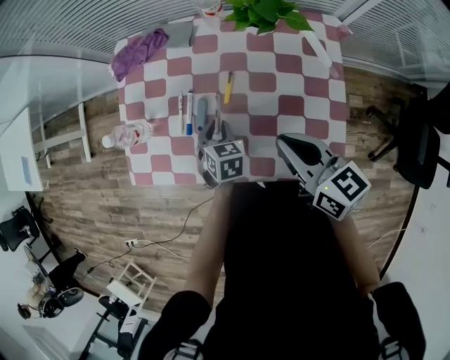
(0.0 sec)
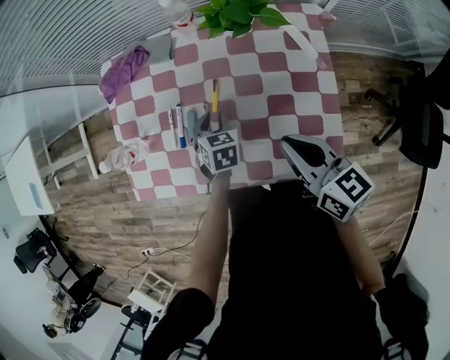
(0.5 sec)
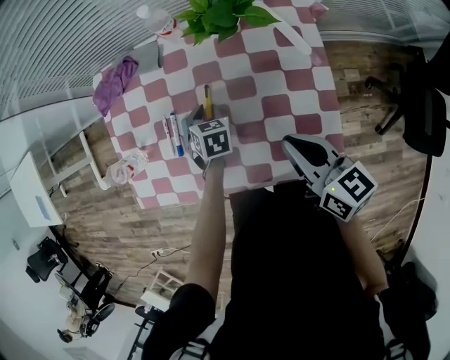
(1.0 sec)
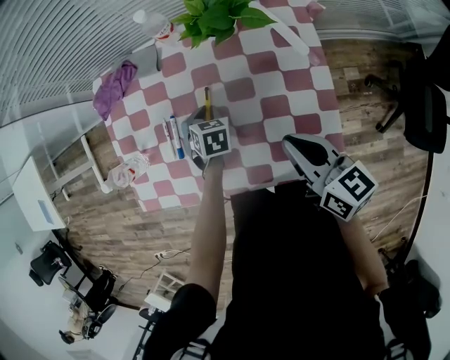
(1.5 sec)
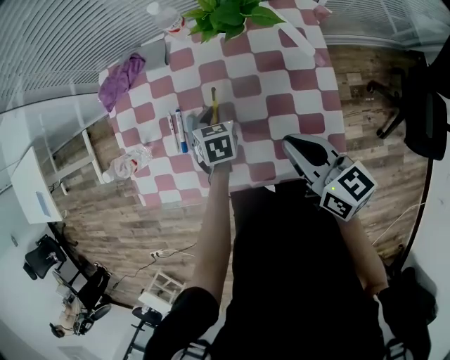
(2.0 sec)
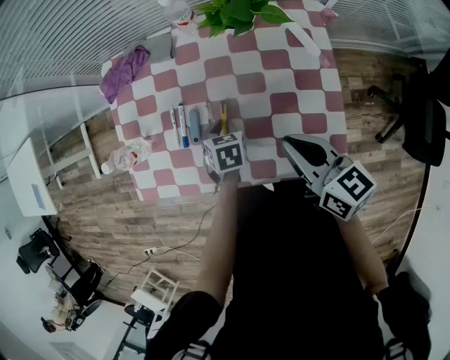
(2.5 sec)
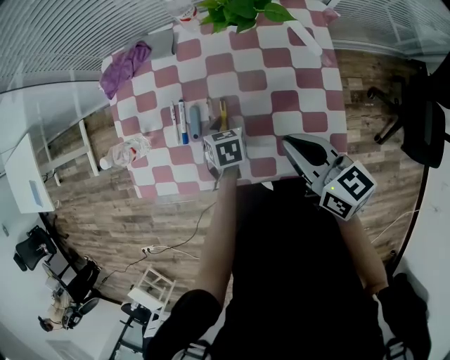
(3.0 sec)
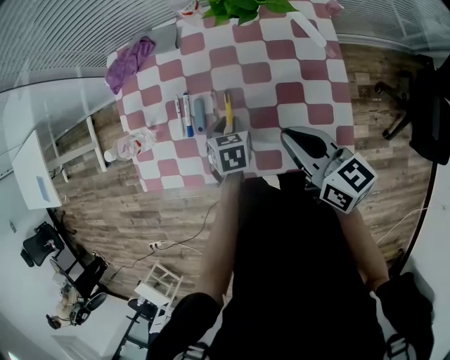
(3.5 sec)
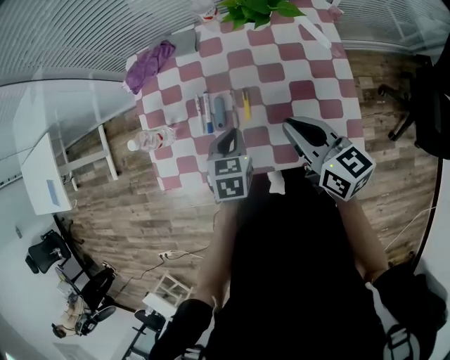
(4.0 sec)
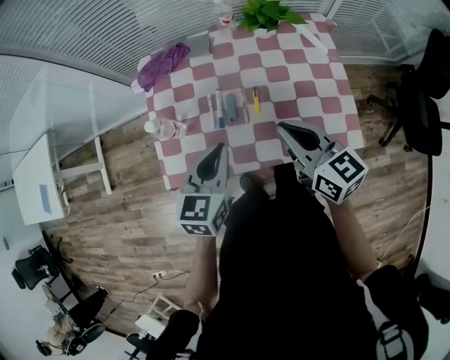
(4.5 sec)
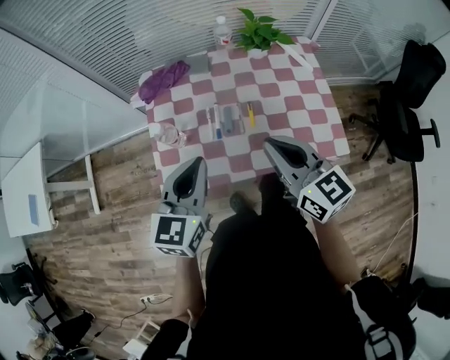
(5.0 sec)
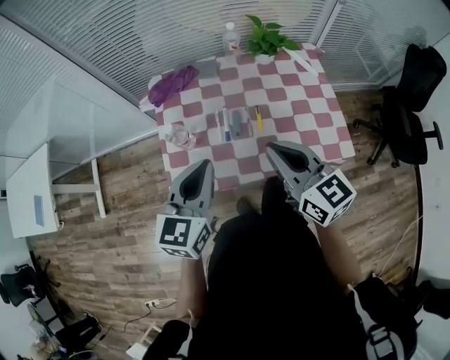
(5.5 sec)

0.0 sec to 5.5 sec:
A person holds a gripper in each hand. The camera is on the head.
0.0 sec to 2.0 sec: The right gripper heads to the right, covering approximately 5 cm; the left gripper is displaced to the right and forward by roughly 10 cm.
2.0 sec to 3.5 sec: The left gripper heads backward, covering approximately 5 cm.
3.5 sec to 5.5 sec: The right gripper moves to the left, upward and backward, approximately 25 cm, and changes its angle by some 30 degrees; the left gripper moves upward and to the left, roughly 40 cm, and tips its fingers upward by about 50 degrees.

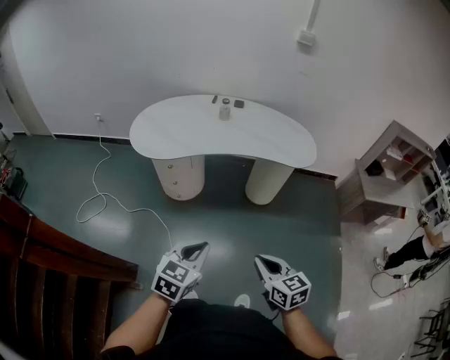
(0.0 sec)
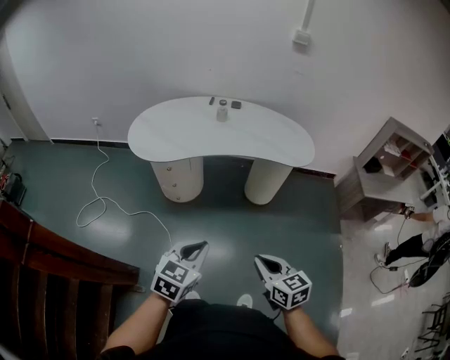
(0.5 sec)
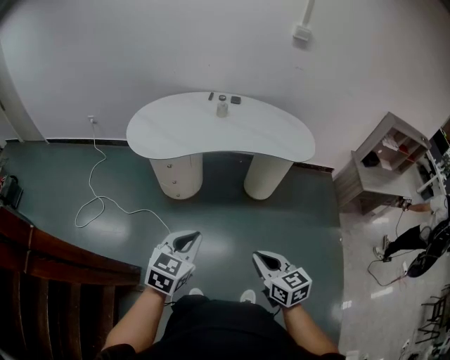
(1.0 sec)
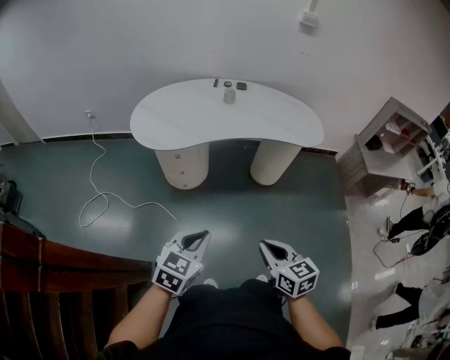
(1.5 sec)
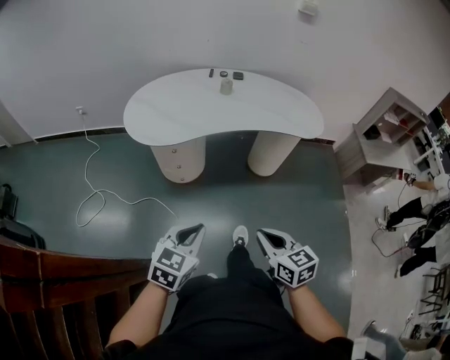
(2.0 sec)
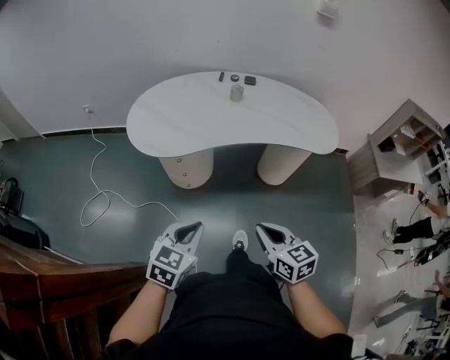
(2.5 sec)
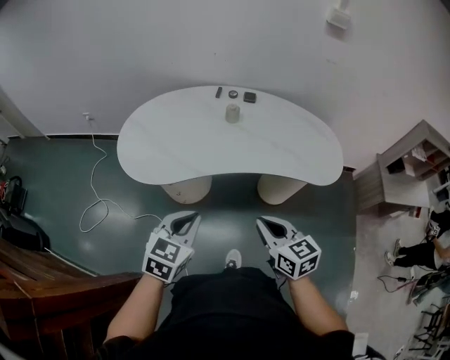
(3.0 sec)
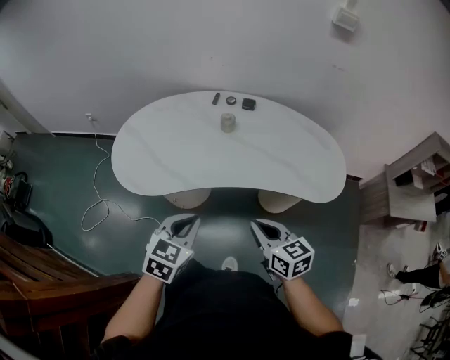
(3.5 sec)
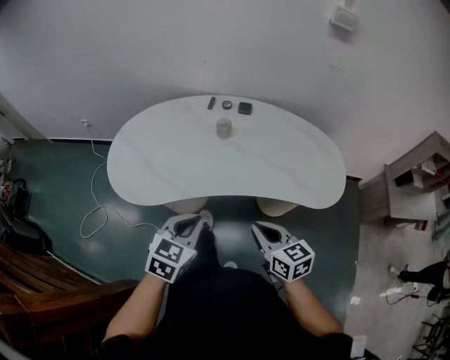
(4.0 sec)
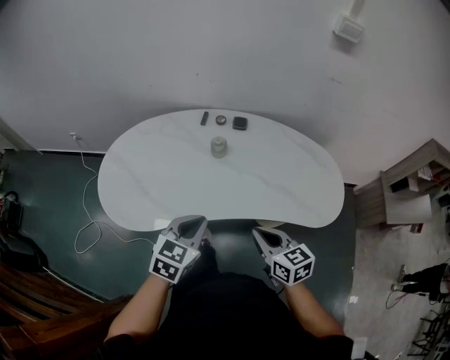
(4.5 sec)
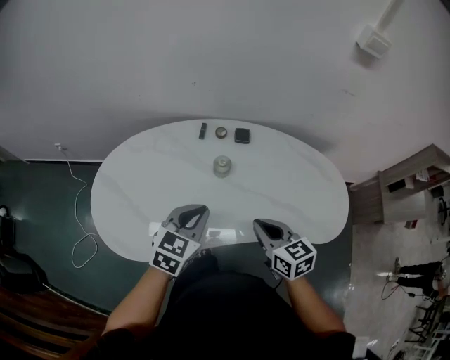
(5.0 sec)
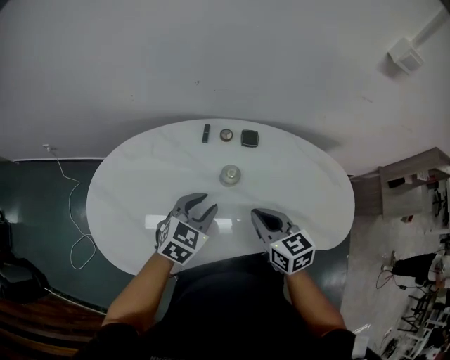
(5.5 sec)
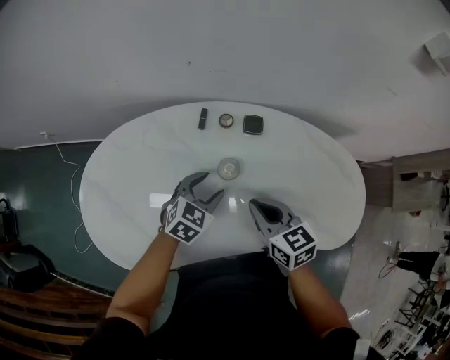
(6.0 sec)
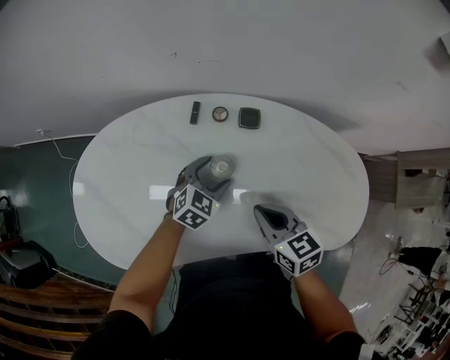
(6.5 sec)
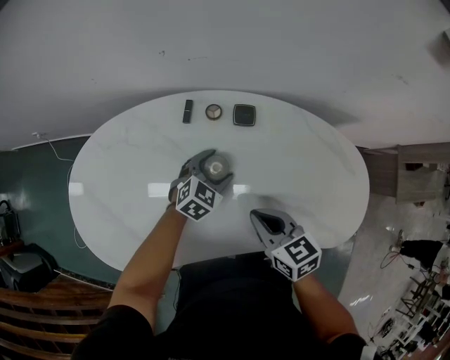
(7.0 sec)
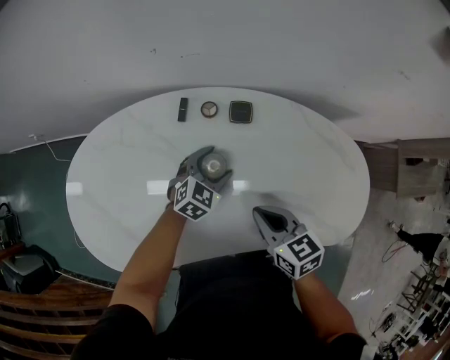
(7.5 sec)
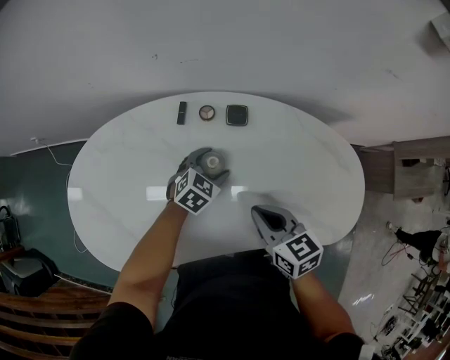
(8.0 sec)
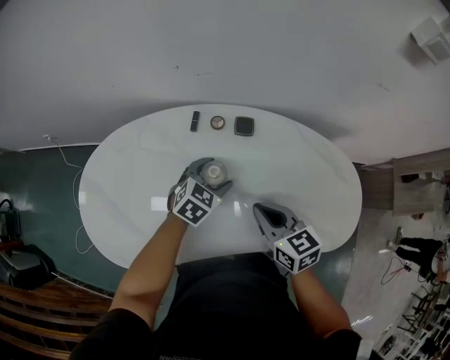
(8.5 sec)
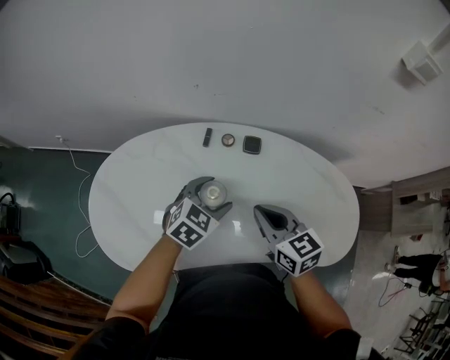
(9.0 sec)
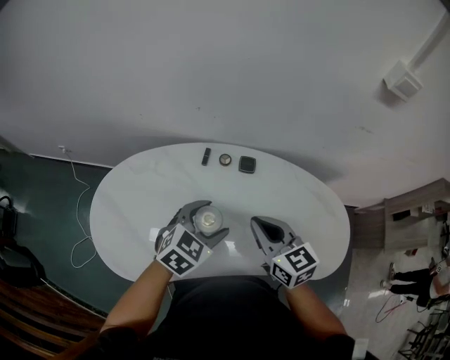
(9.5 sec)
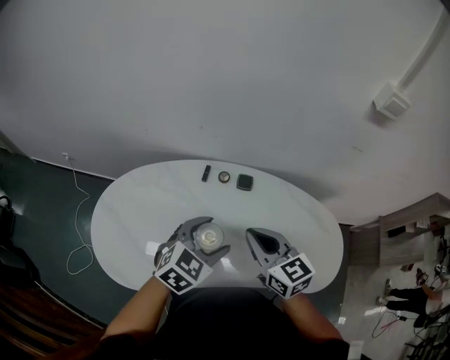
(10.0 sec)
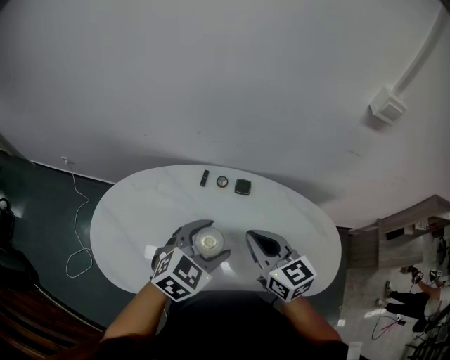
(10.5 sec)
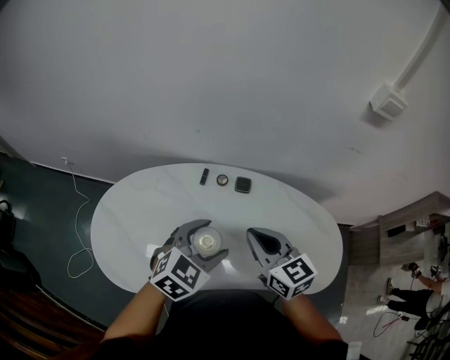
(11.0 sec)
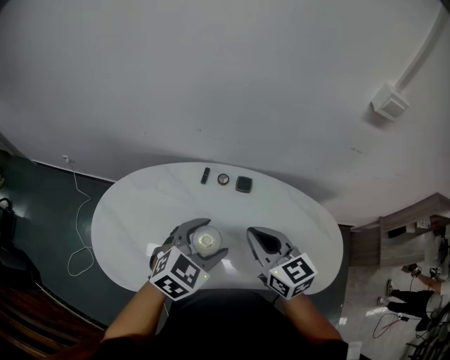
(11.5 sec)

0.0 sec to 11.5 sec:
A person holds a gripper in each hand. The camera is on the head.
0.0 sec to 2.0 sec: The grippers both shift to the left by some 15 cm.
2.0 sec to 4.0 sec: The grippers both shift forward by roughly 35 cm.
4.0 sec to 6.0 sec: The two grippers go some 35 cm forward. The left gripper opens.
6.0 sec to 7.5 sec: The left gripper goes about 10 cm downward, to the right and forward, while the right gripper changes place by roughly 5 cm.
7.5 sec to 9.5 sec: The left gripper goes approximately 25 cm upward and backward, while the right gripper moves upward, roughly 15 cm, and swivels roughly 20 degrees.
9.5 sec to 11.5 sec: The right gripper ends up approximately 5 cm from where it was. The left gripper travels upward by approximately 5 cm.

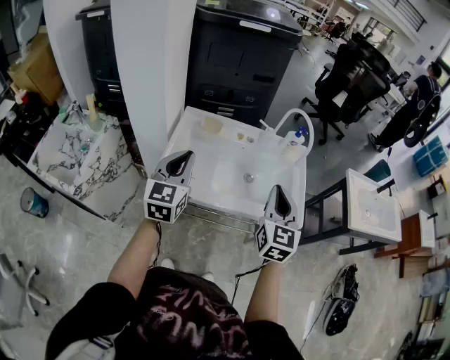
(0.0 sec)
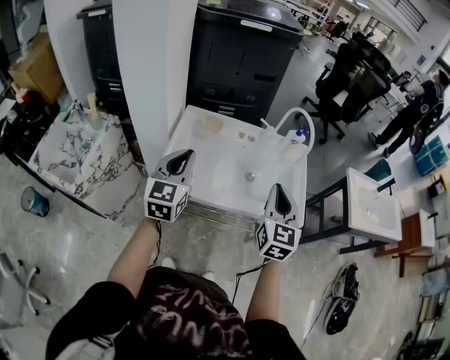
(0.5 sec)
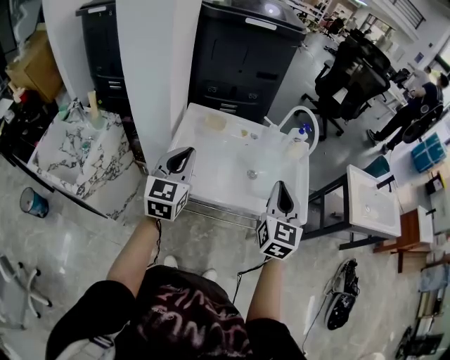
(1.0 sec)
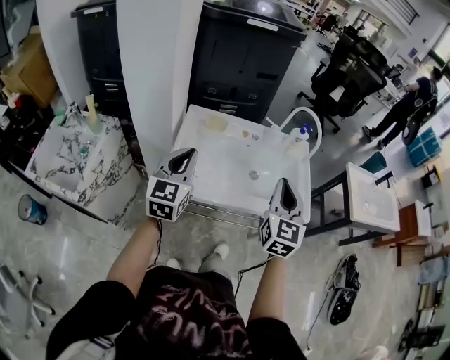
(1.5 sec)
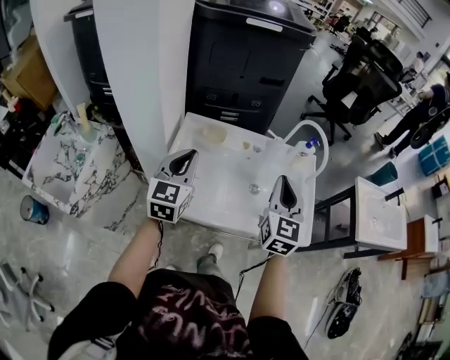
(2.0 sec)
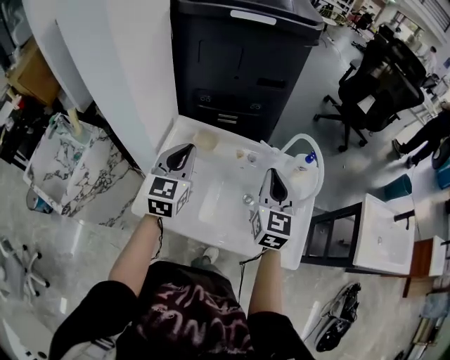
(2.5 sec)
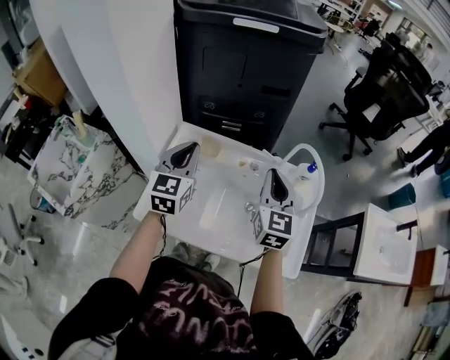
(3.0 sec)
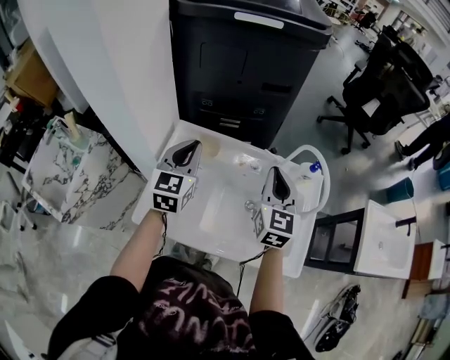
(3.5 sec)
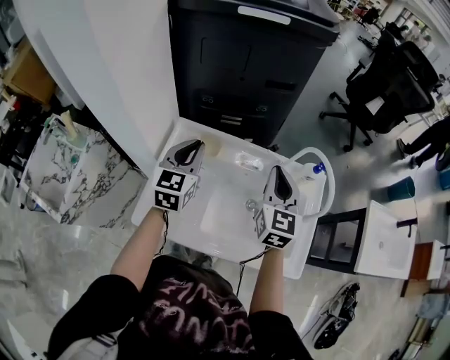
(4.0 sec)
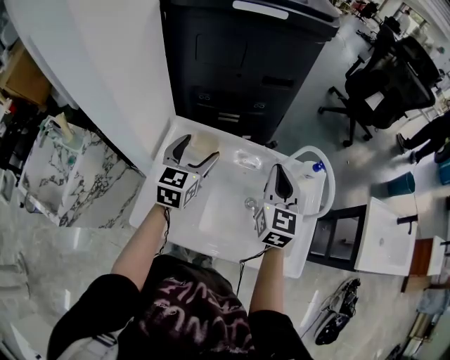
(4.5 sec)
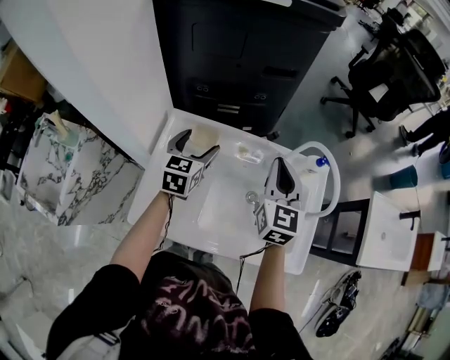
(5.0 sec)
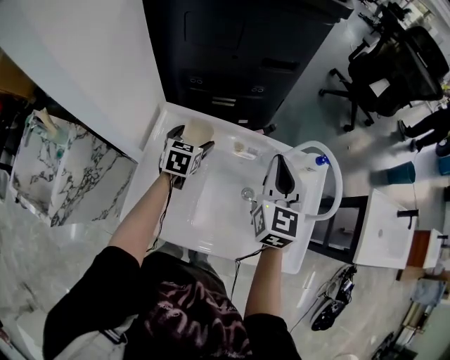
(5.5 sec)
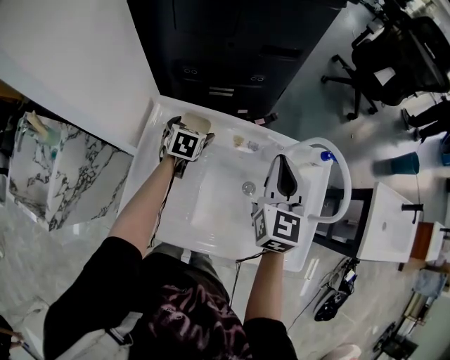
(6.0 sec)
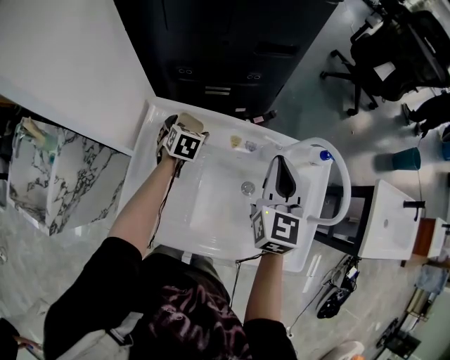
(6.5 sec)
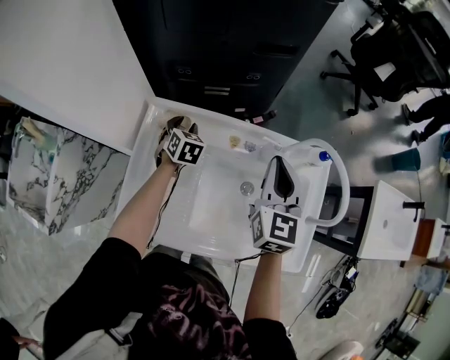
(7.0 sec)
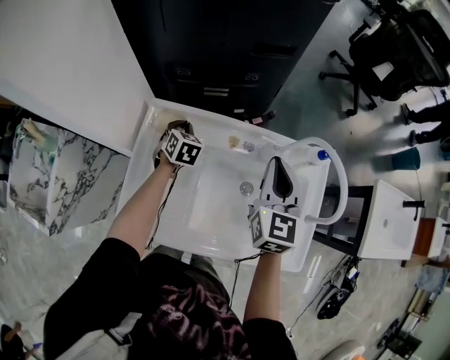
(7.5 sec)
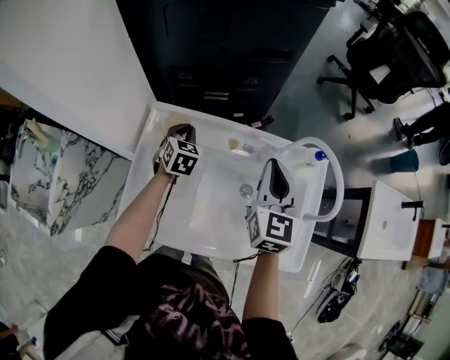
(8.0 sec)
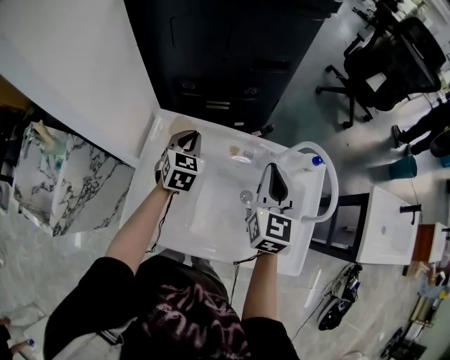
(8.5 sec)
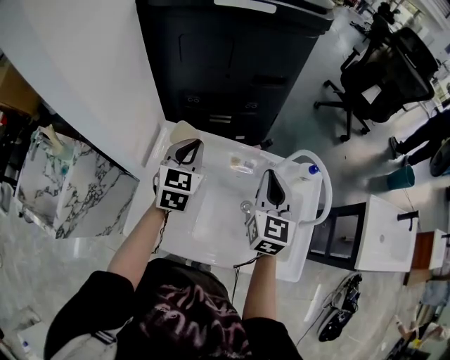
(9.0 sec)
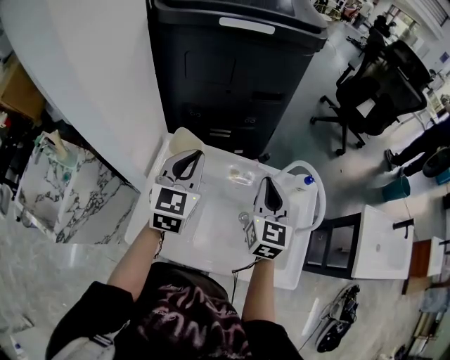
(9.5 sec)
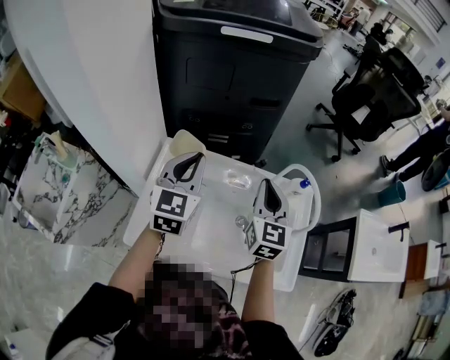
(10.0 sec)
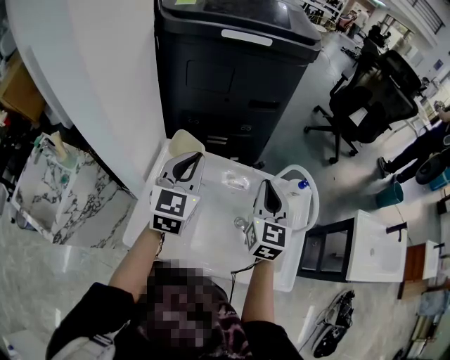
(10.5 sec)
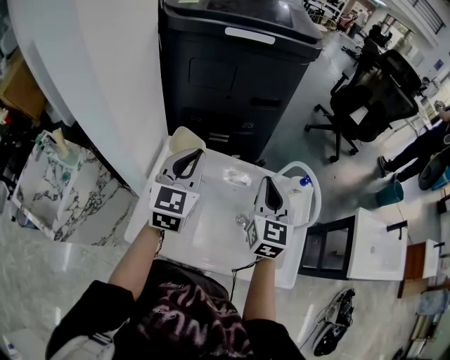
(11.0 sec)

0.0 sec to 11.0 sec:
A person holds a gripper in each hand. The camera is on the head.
0.0 sec to 2.0 sec: The grippers both shift forward by approximately 10 cm.
2.0 sec to 3.5 sec: The grippers both shift forward by approximately 15 cm.
3.5 sec to 5.5 sec: The right gripper travels forward by roughly 5 cm, while the left gripper shifts about 25 cm downward and forward, rotates some 30 degrees, and opens.
5.5 sec to 7.5 sec: The left gripper travels downward by about 5 cm, swivels approximately 20 degrees, and closes up.
7.5 sec to 9.0 sec: The left gripper moves upward, about 20 cm, and changes its angle by roughly 30 degrees.
9.0 sec to 11.0 sec: The left gripper goes approximately 10 cm upward and backward. The right gripper ends up roughly 5 cm from where it was.
